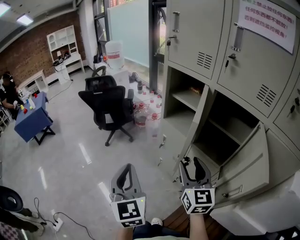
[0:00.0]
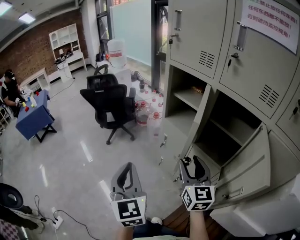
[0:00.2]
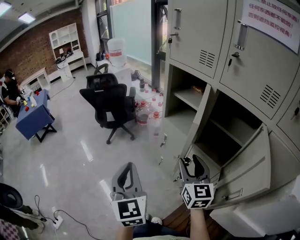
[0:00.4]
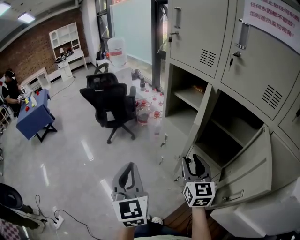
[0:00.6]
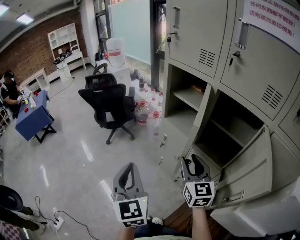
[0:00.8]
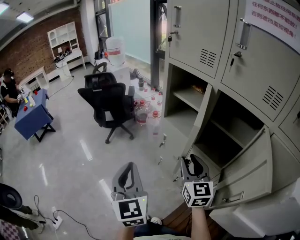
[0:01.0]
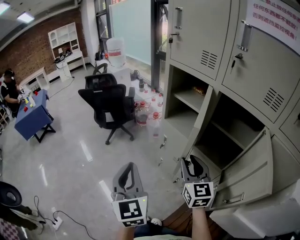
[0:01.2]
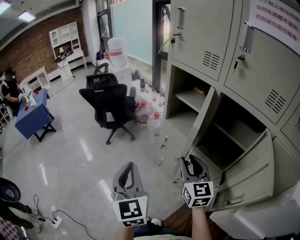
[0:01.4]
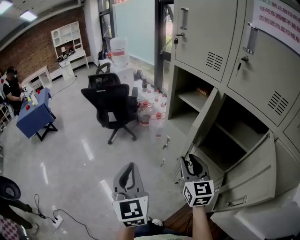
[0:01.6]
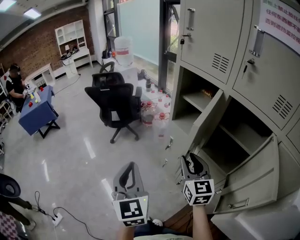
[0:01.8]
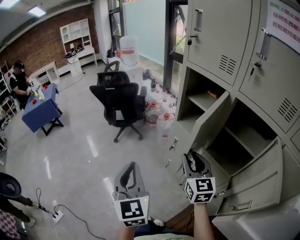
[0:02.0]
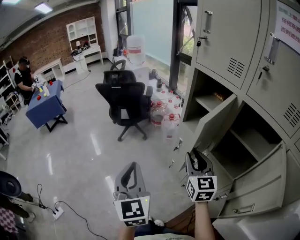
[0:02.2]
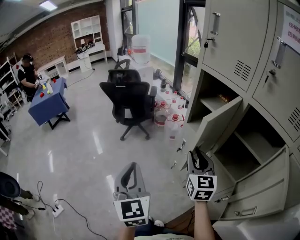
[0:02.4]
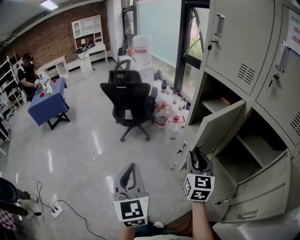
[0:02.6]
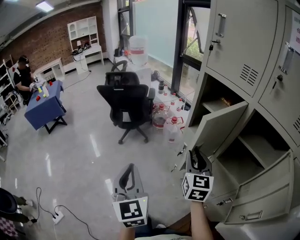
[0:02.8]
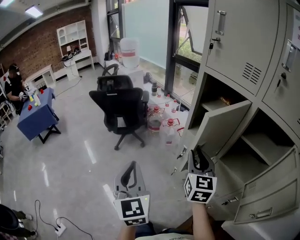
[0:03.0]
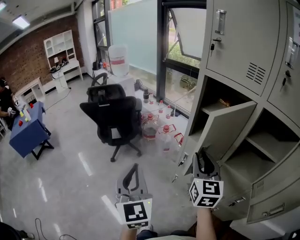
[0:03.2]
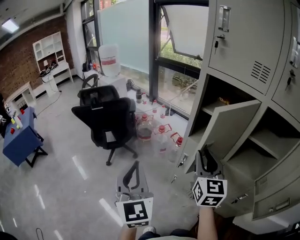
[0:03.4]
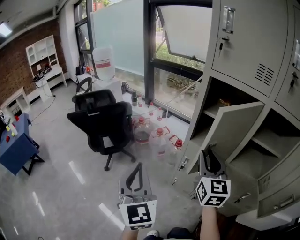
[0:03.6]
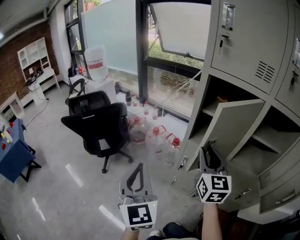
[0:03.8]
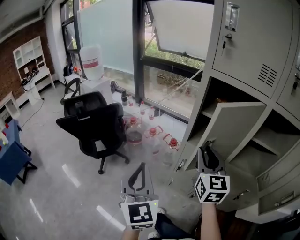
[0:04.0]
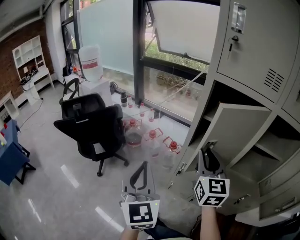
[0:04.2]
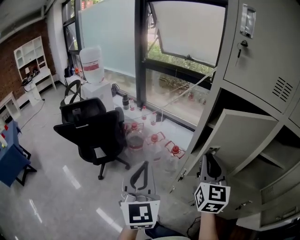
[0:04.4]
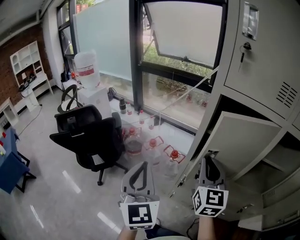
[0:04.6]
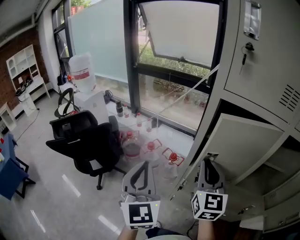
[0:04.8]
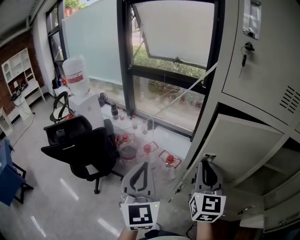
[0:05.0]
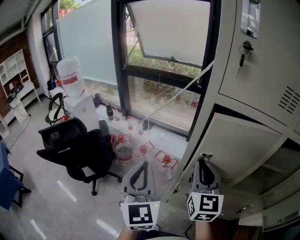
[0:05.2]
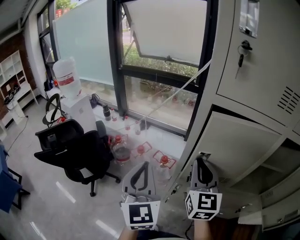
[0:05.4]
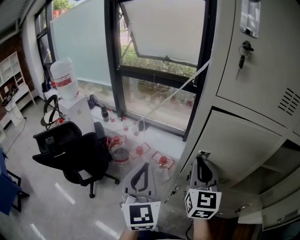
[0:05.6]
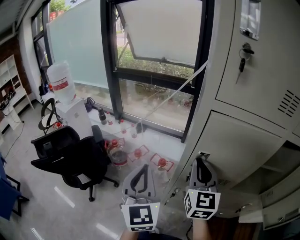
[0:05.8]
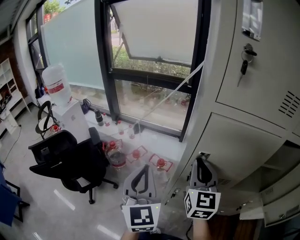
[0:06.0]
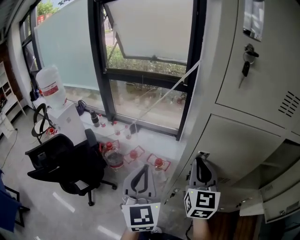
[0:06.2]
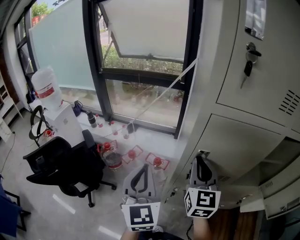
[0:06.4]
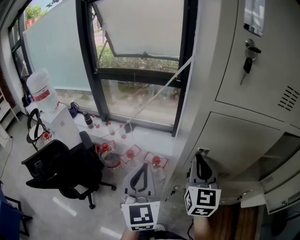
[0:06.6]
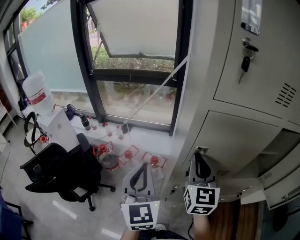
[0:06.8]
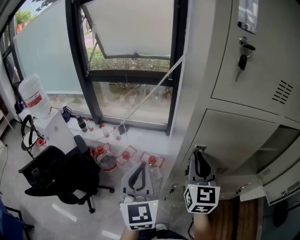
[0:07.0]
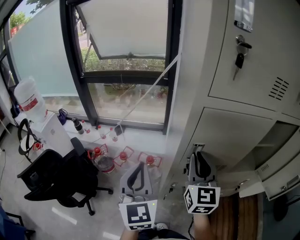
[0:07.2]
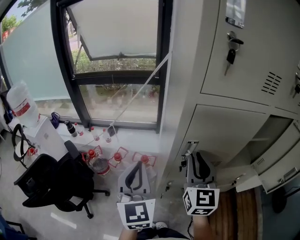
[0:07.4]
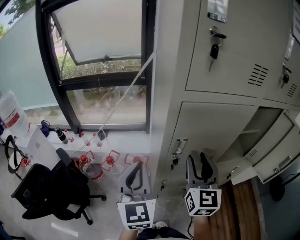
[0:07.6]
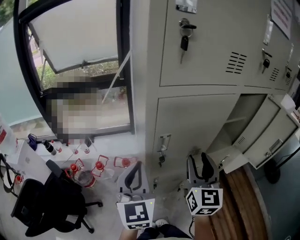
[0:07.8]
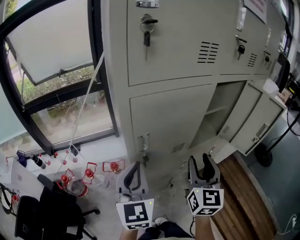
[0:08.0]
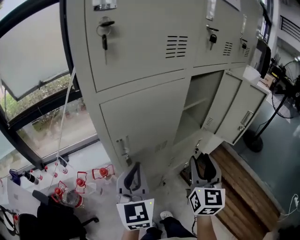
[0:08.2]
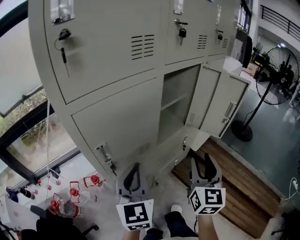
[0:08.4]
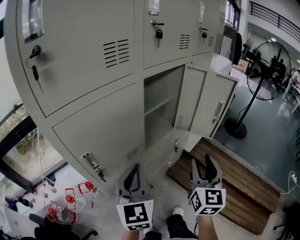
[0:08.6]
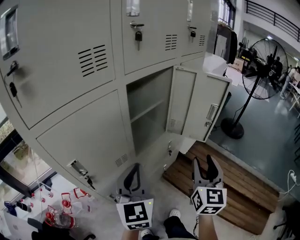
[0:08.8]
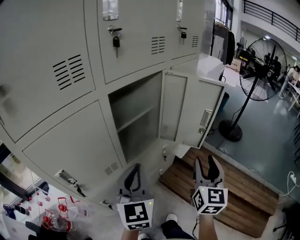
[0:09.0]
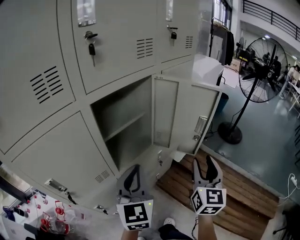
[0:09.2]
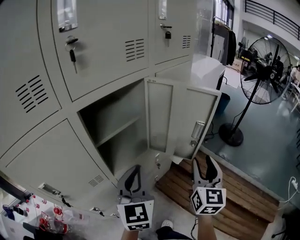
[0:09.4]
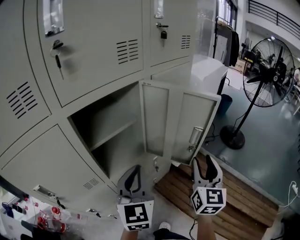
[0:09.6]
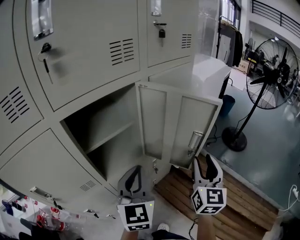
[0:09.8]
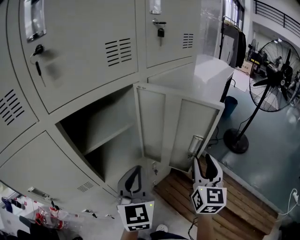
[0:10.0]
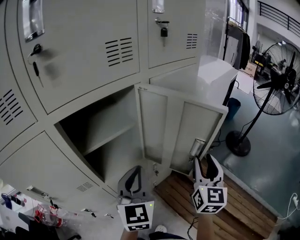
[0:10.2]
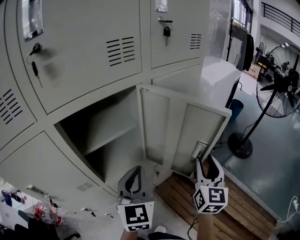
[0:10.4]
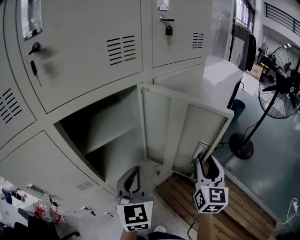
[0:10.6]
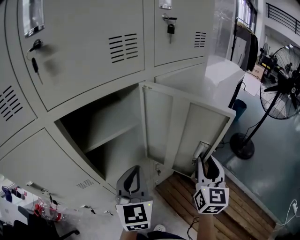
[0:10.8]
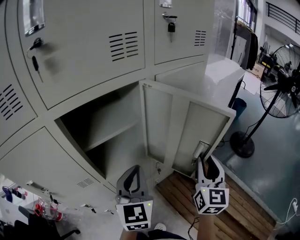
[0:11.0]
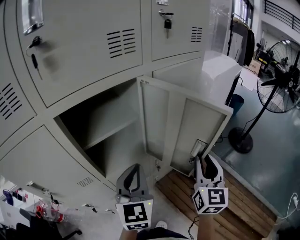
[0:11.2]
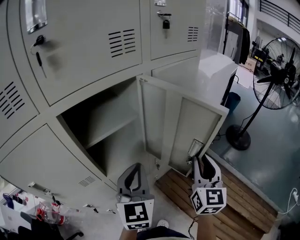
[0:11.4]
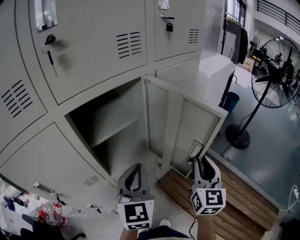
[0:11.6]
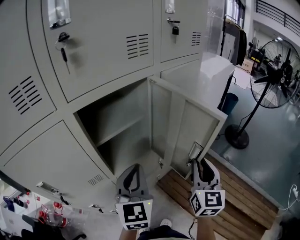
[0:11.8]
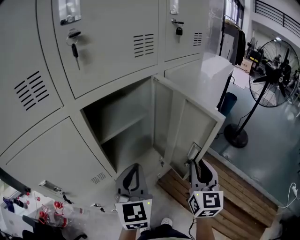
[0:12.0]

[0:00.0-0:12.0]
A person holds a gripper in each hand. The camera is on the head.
0:00.0 to 0:01.6: The right gripper travels forward by approximately 5 cm, and closes its fingers.
0:01.6 to 0:03.0: Both grippers travel together forward and to the left, about 15 cm.
0:03.0 to 0:04.4: The left gripper travels forward by some 25 cm, and changes its angle by roughly 30 degrees. Meanwhile the right gripper goes roughly 15 cm forward, and swivels roughly 20 degrees.
0:04.4 to 0:06.0: The grippers both shift forward by about 15 cm.
0:06.0 to 0:07.6: The left gripper turns by about 20 degrees. The right gripper ends up roughly 5 cm from where it was, and opens up.
0:07.6 to 0:09.0: The left gripper changes place by some 35 cm, and swivels approximately 40 degrees. The right gripper ends up some 40 cm from where it was, and rotates roughly 50 degrees.
0:09.0 to 0:10.4: Both grippers move forward and to the right, about 20 cm.
0:10.4 to 0:12.0: The right gripper goes approximately 10 cm backward and to the left, and closes up, while the left gripper travels to the left and backward by roughly 10 cm.

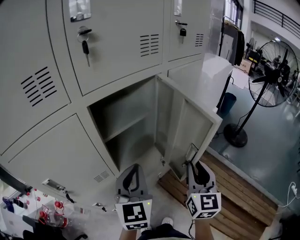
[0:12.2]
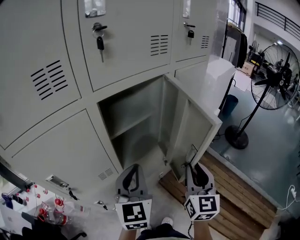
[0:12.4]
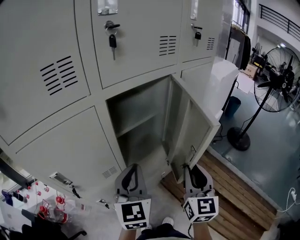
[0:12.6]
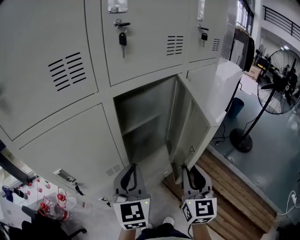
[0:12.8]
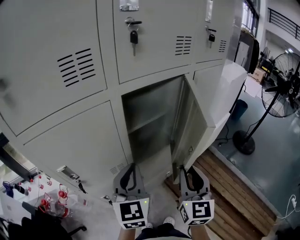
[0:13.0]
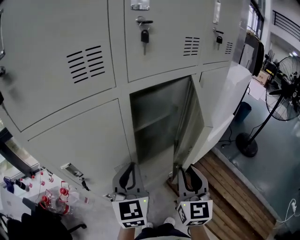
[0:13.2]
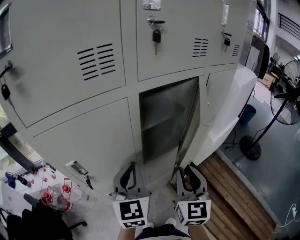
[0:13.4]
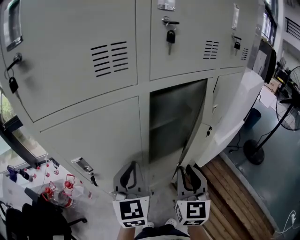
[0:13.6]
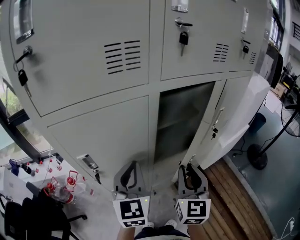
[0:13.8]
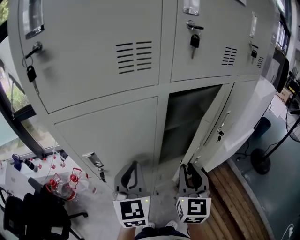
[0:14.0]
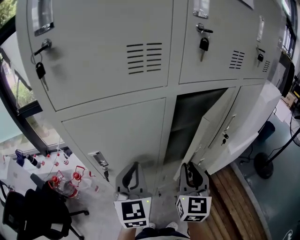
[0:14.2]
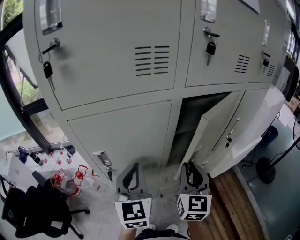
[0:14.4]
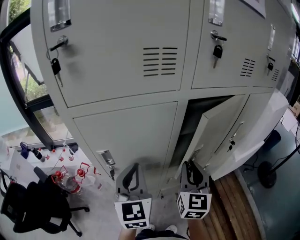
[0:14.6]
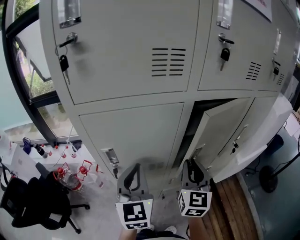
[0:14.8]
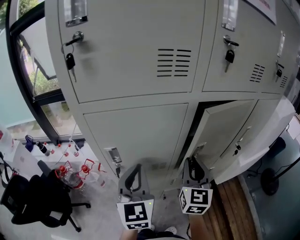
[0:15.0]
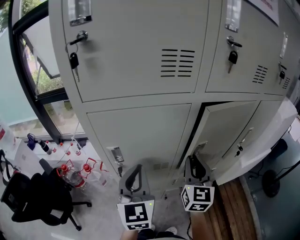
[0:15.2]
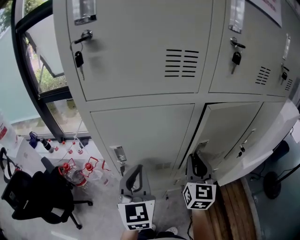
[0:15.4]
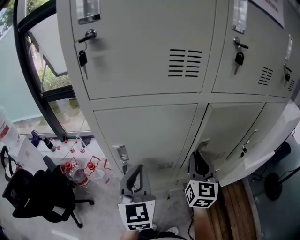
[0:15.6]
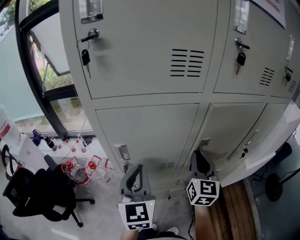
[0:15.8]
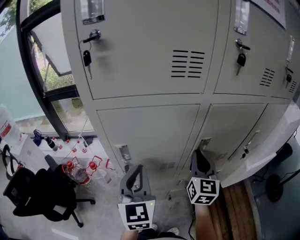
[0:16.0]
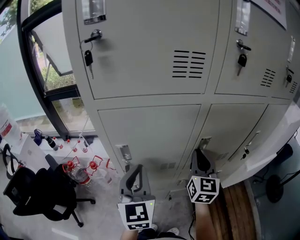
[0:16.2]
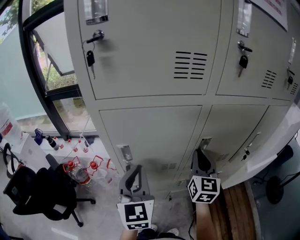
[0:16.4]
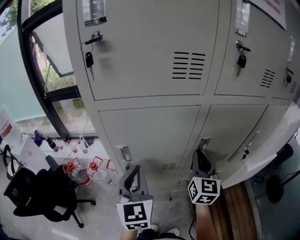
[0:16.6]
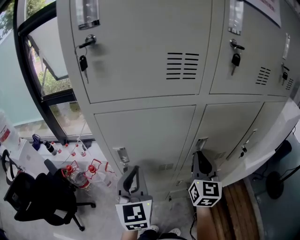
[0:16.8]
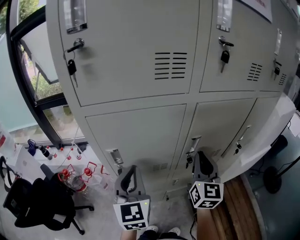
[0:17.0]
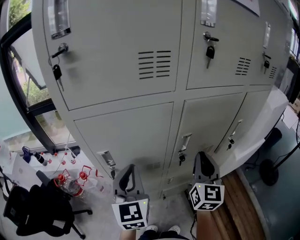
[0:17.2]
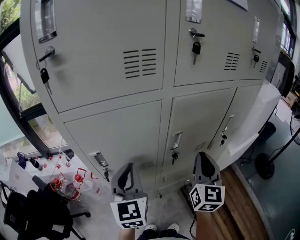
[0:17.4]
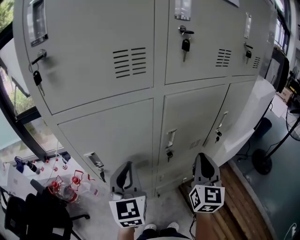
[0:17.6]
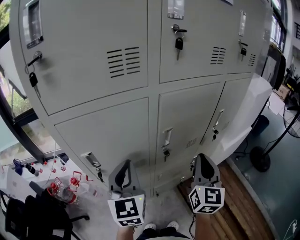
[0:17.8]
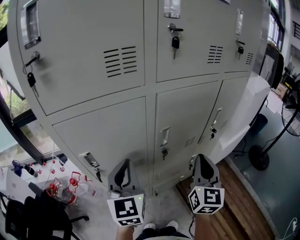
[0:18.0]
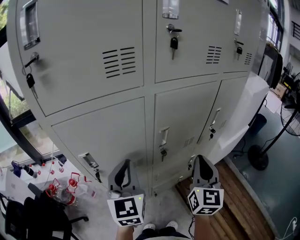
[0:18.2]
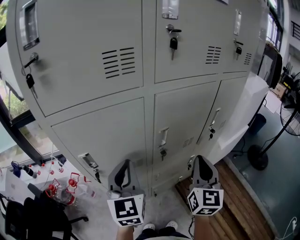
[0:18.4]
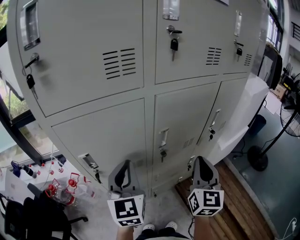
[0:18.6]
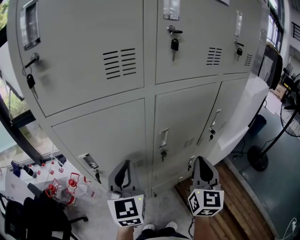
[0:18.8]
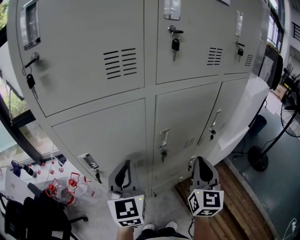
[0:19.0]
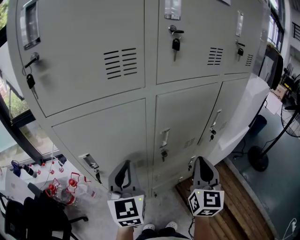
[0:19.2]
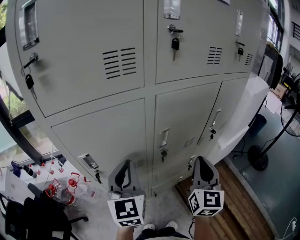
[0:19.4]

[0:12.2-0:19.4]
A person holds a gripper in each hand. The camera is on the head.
0:12.2 to 0:13.6: The grippers both shift to the left by some 15 cm.
0:13.6 to 0:15.0: The right gripper heads forward and to the left, covering about 10 cm, while the left gripper shifts some 10 cm to the left.
0:15.0 to 0:16.6: There are only small adjustments of the grippers.
0:16.6 to 0:18.0: The right gripper goes about 15 cm to the right and backward. Meanwhile the left gripper is displaced to the right by approximately 10 cm.
0:18.0 to 0:19.4: Neither gripper changes place.

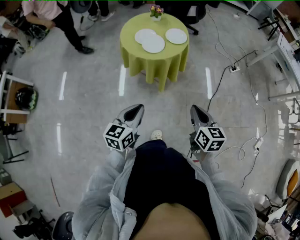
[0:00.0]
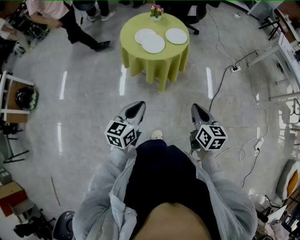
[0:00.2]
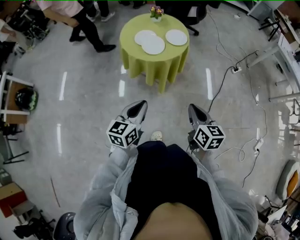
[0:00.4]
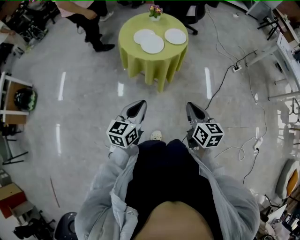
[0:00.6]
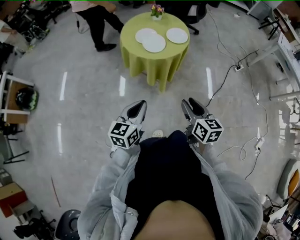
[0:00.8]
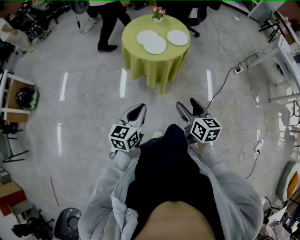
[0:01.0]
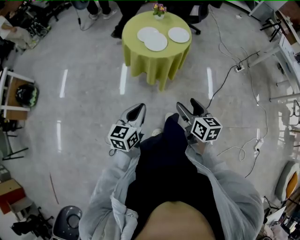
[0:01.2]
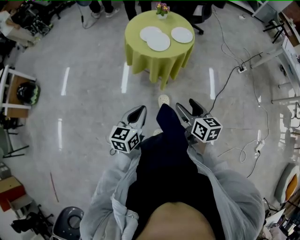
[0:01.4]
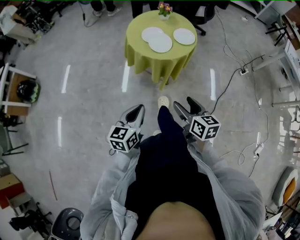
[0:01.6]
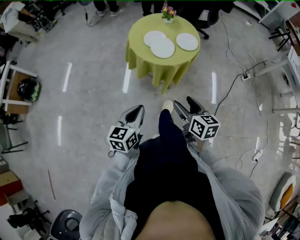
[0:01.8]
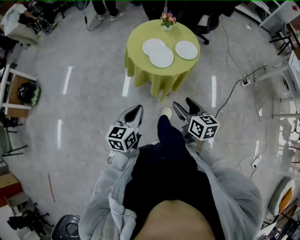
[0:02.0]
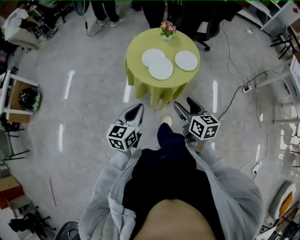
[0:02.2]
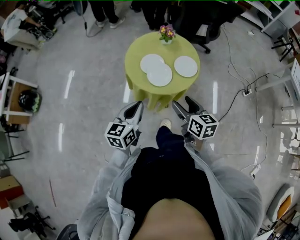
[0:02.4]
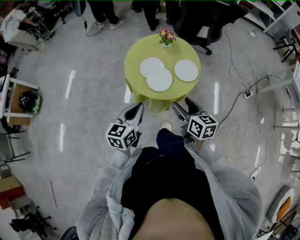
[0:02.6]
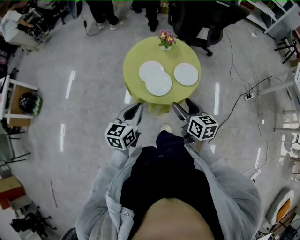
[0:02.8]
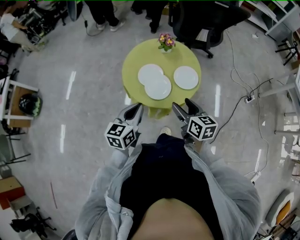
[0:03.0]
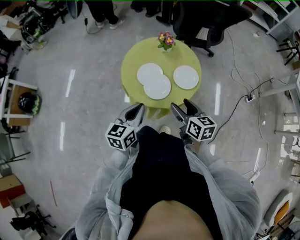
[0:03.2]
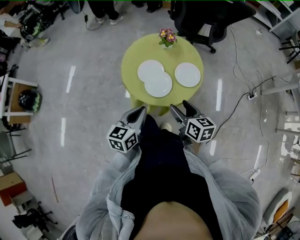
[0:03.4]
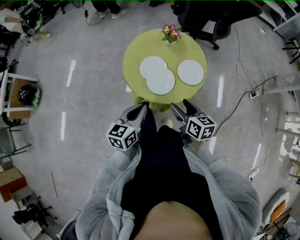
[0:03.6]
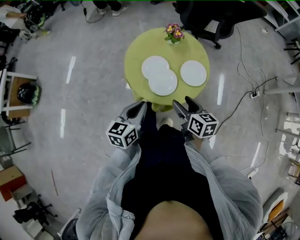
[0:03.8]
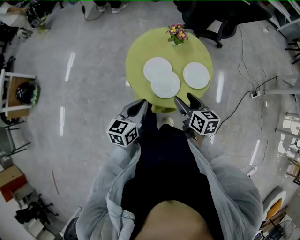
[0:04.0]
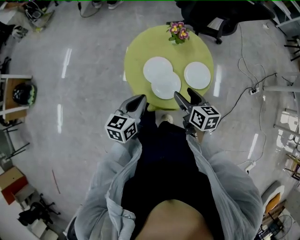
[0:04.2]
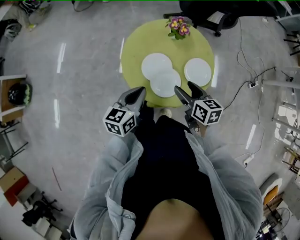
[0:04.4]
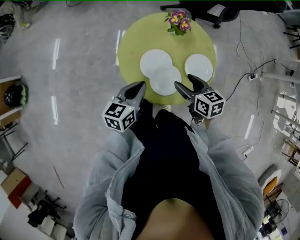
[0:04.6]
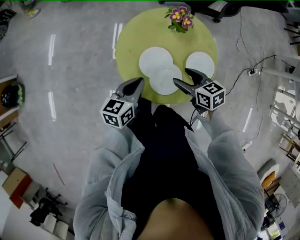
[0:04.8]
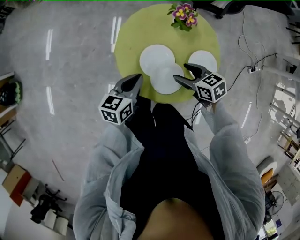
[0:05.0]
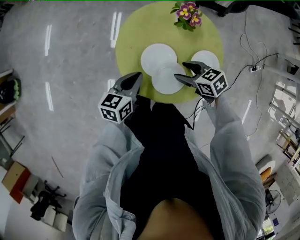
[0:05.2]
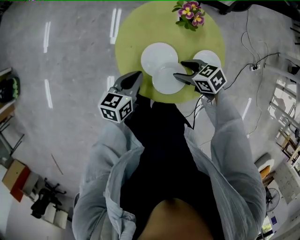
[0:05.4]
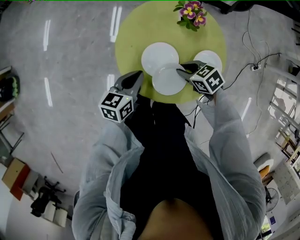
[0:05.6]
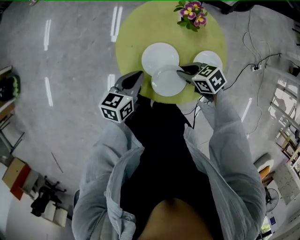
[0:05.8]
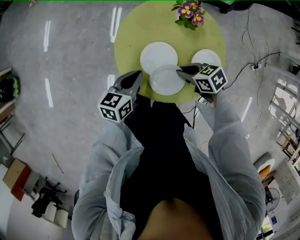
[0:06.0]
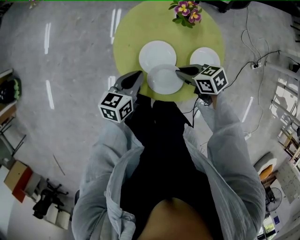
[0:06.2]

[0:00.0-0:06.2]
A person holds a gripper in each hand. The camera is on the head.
0:00.0 to 0:01.6: The right gripper is displaced to the left by some 5 cm, and opens its fingers.
0:01.6 to 0:03.2: The grippers both shift forward by roughly 30 cm.
0:03.2 to 0:04.6: The two grippers go roughly 15 cm forward and downward.
0:04.6 to 0:06.2: Both grippers travel together downward, some 5 cm. The right gripper swivels roughly 30 degrees, and closes.
